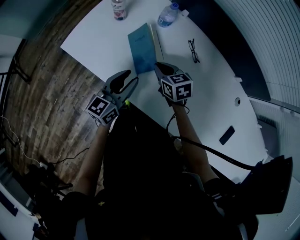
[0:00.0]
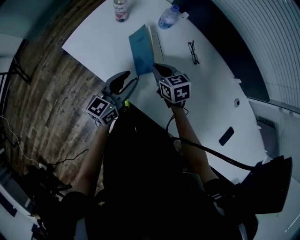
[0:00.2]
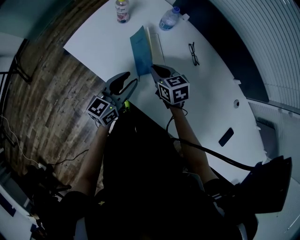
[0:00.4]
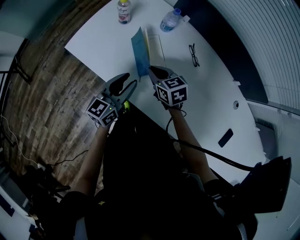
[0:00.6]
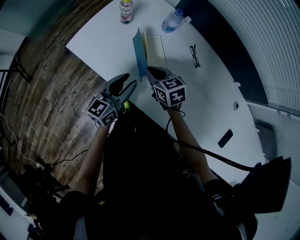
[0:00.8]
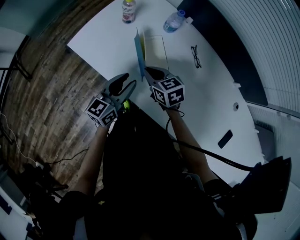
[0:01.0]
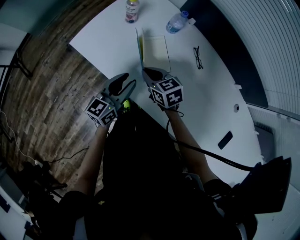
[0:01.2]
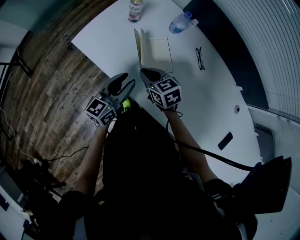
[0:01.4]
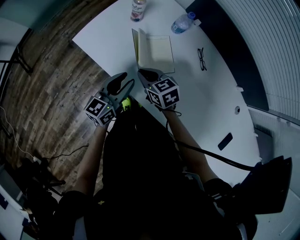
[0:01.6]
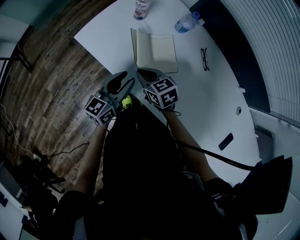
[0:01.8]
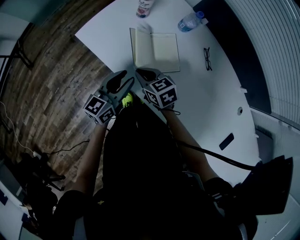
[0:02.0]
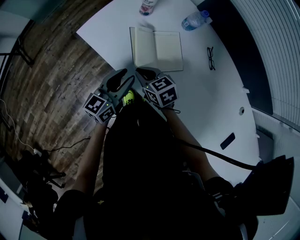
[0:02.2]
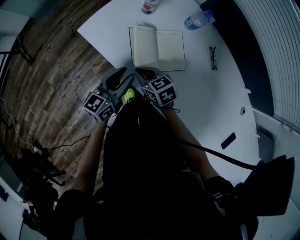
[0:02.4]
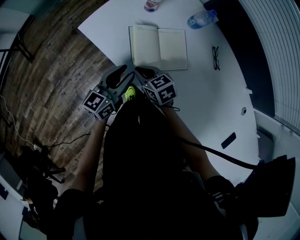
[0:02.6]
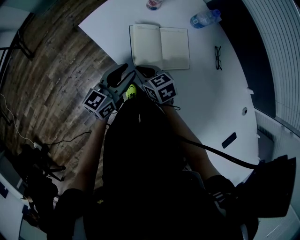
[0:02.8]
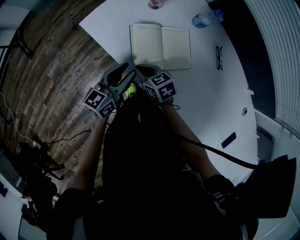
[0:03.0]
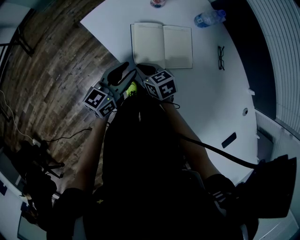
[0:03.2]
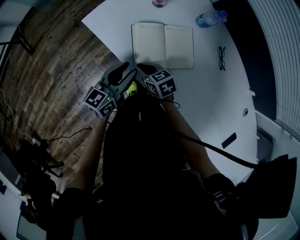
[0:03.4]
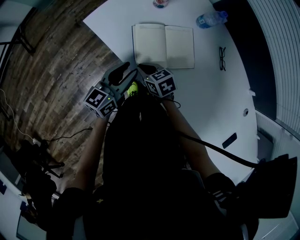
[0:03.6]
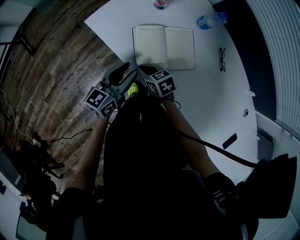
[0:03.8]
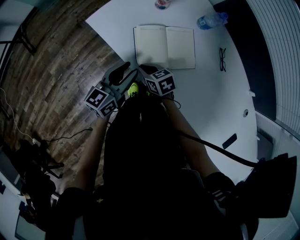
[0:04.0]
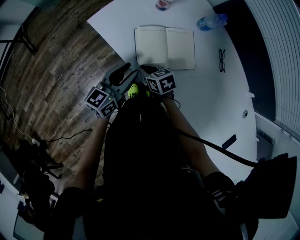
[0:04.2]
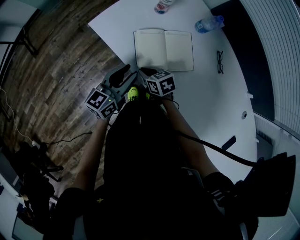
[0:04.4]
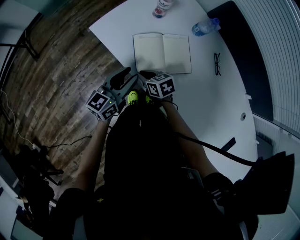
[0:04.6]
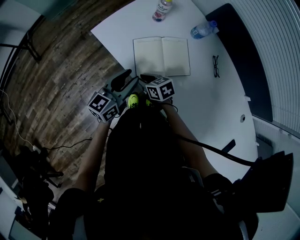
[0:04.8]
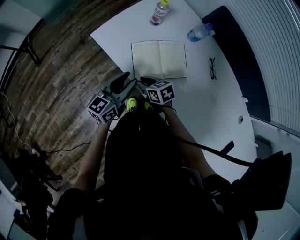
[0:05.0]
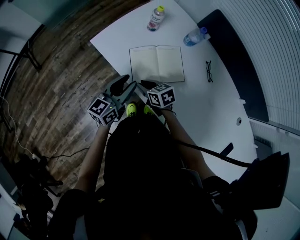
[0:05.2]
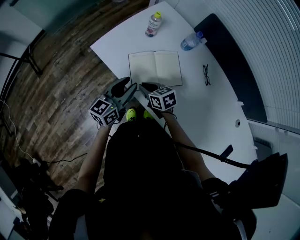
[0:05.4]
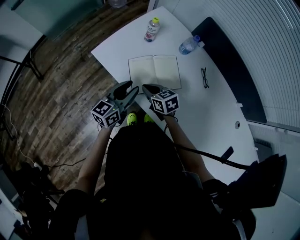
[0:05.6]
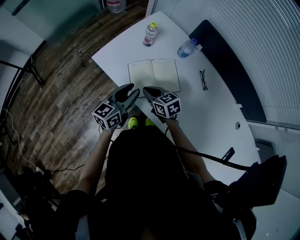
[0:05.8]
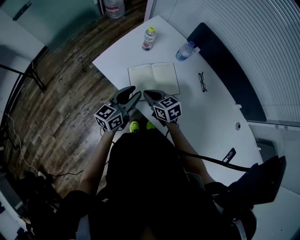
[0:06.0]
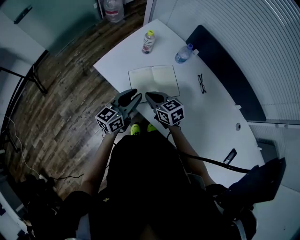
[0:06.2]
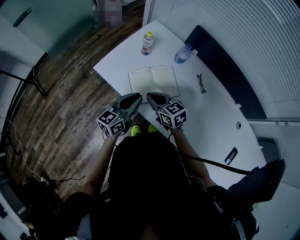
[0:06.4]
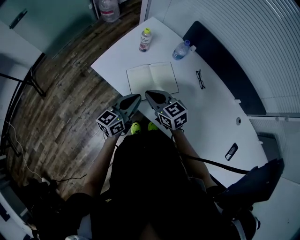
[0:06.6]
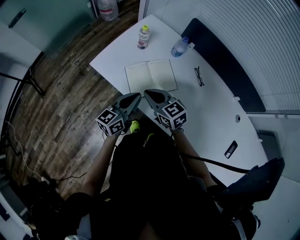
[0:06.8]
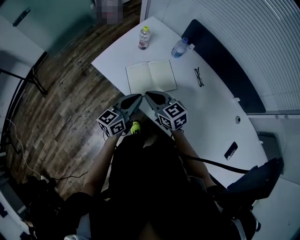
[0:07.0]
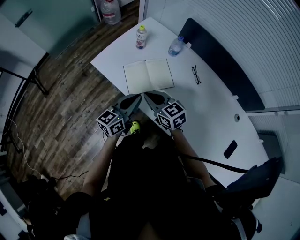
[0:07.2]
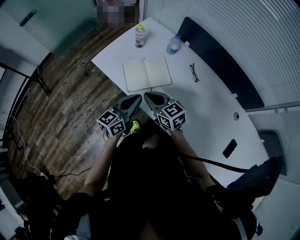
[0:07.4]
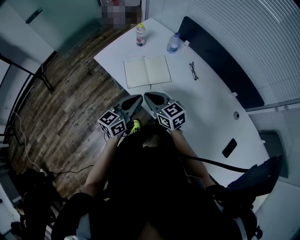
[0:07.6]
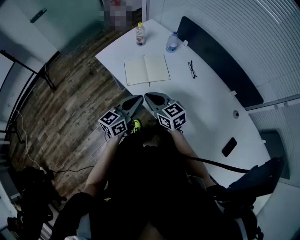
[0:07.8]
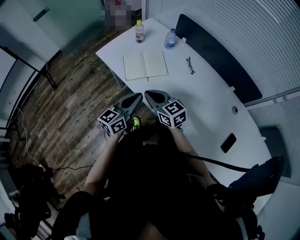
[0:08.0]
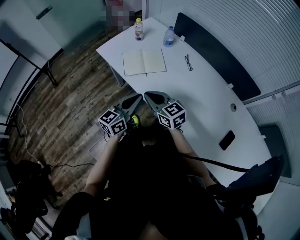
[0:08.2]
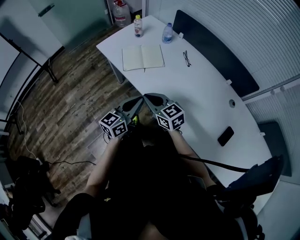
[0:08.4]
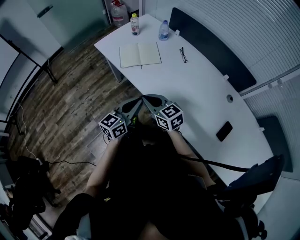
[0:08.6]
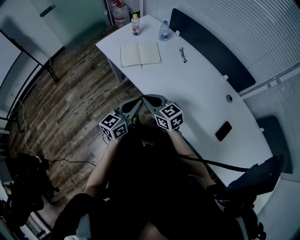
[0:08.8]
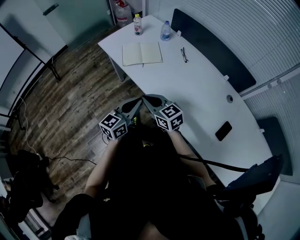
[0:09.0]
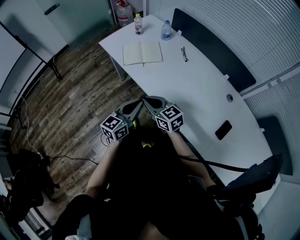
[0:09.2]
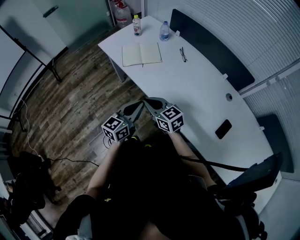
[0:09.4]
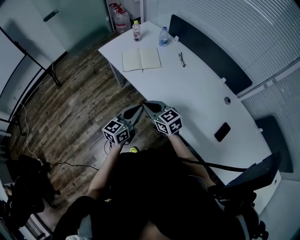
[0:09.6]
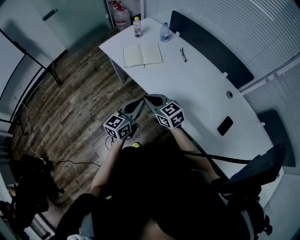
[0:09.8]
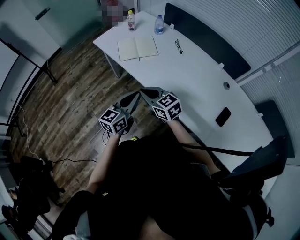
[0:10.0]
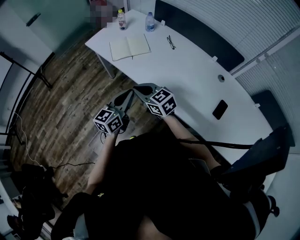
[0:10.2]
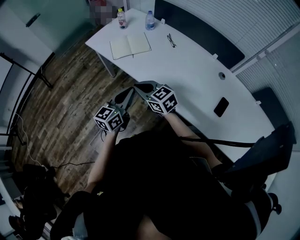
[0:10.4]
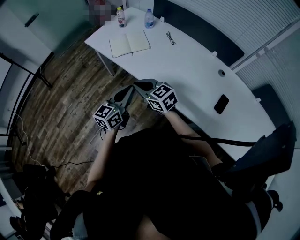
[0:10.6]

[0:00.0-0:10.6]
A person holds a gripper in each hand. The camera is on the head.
0:00.0 to 0:01.6: The right gripper shifts approximately 15 cm to the left. The left gripper goes about 5 cm to the left.
0:01.6 to 0:03.0: The left gripper shifts some 5 cm to the left, while the right gripper moves to the left and downward, about 10 cm.
0:03.0 to 0:04.6: The grippers make only small movements.
0:04.6 to 0:06.0: The left gripper goes approximately 5 cm upward. Meanwhile the right gripper travels upward by roughly 10 cm.
0:06.0 to 0:07.6: The left gripper goes roughly 15 cm backward and to the right, and closes, while the right gripper shifts roughly 15 cm backward, upward and to the right.
0:07.6 to 0:09.0: The grippers both shift backward by roughly 20 cm.
0:09.0 to 0:10.6: There are only small adjustments of the grippers.

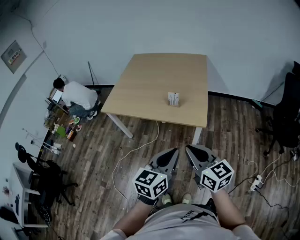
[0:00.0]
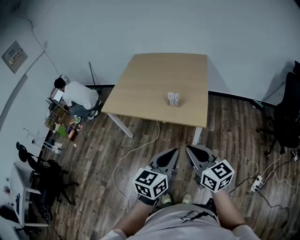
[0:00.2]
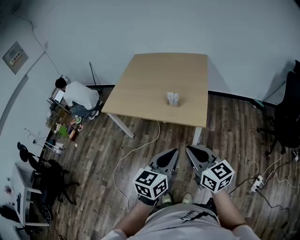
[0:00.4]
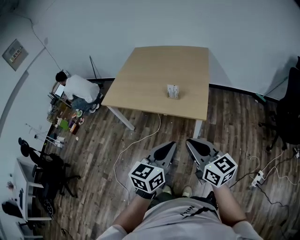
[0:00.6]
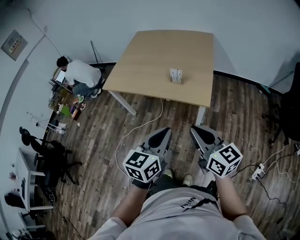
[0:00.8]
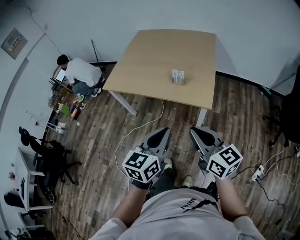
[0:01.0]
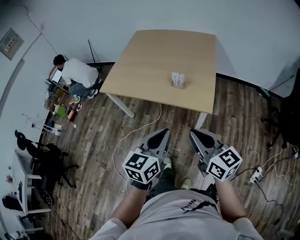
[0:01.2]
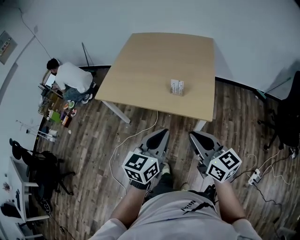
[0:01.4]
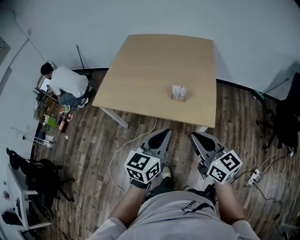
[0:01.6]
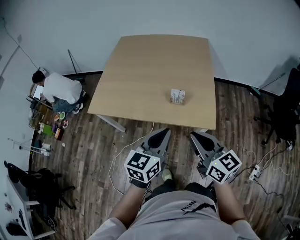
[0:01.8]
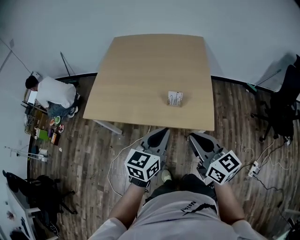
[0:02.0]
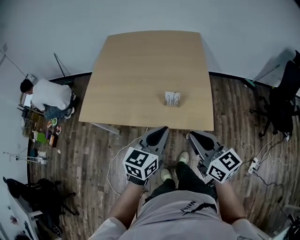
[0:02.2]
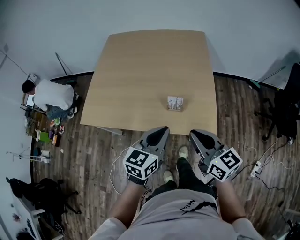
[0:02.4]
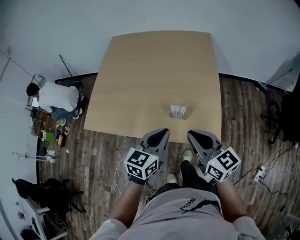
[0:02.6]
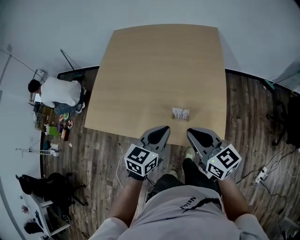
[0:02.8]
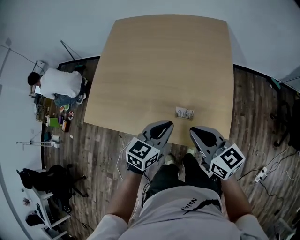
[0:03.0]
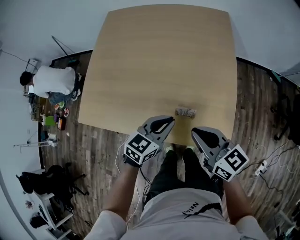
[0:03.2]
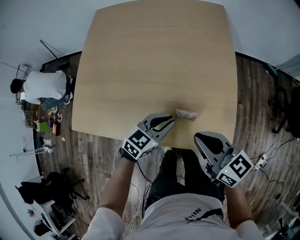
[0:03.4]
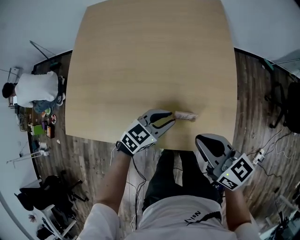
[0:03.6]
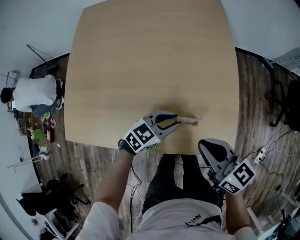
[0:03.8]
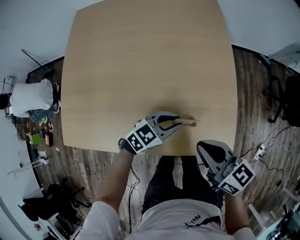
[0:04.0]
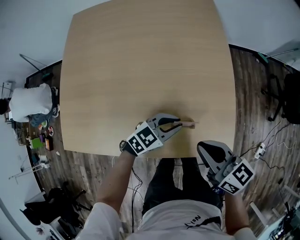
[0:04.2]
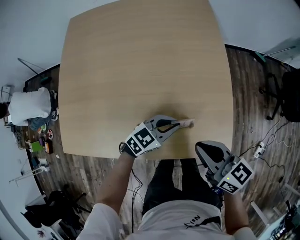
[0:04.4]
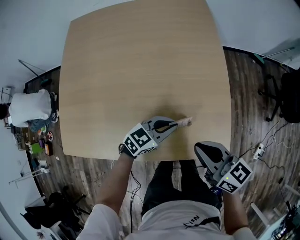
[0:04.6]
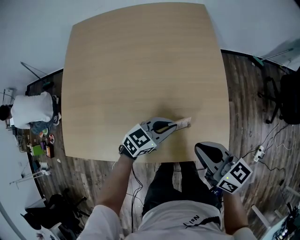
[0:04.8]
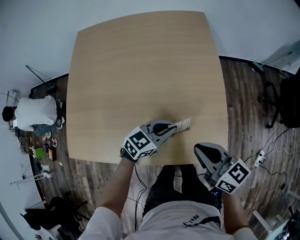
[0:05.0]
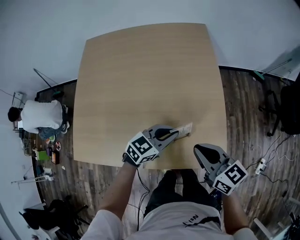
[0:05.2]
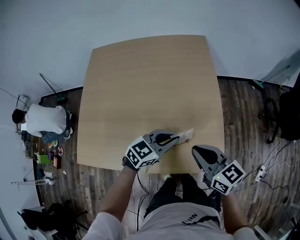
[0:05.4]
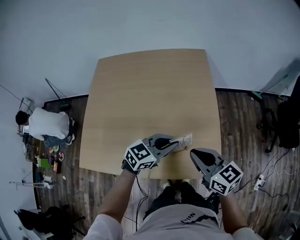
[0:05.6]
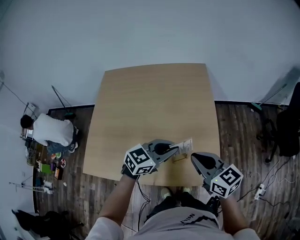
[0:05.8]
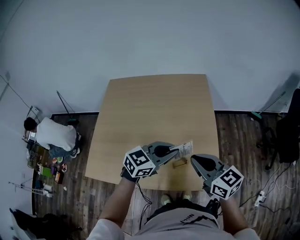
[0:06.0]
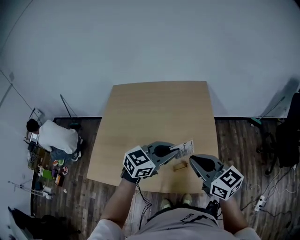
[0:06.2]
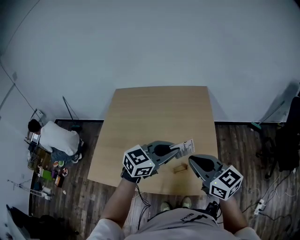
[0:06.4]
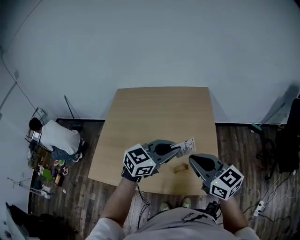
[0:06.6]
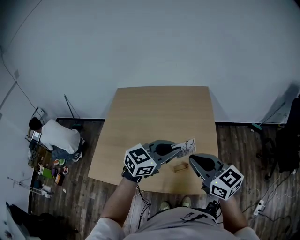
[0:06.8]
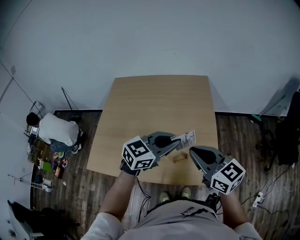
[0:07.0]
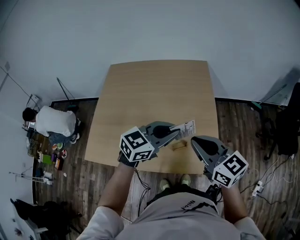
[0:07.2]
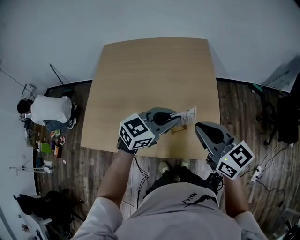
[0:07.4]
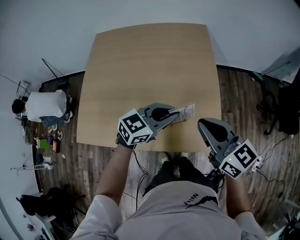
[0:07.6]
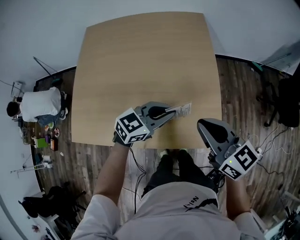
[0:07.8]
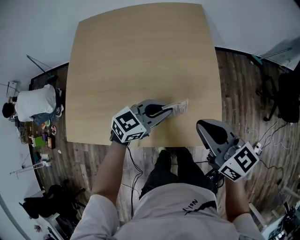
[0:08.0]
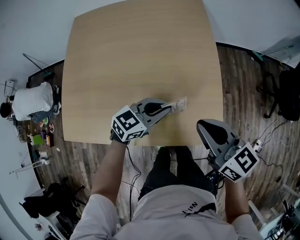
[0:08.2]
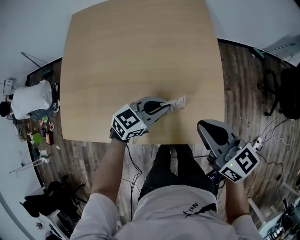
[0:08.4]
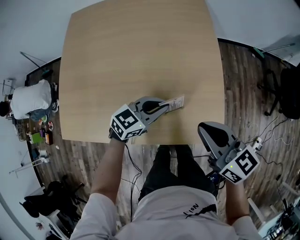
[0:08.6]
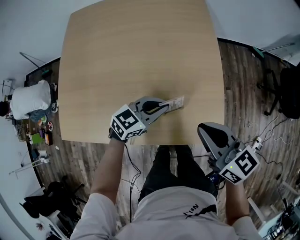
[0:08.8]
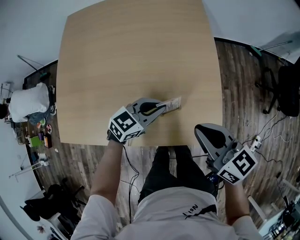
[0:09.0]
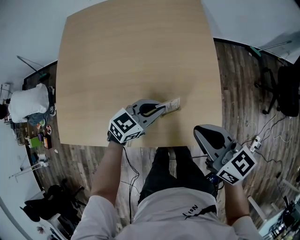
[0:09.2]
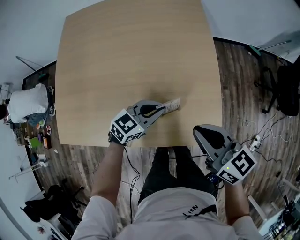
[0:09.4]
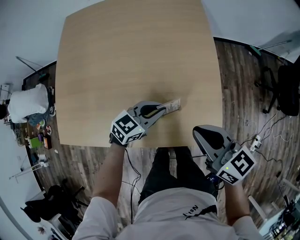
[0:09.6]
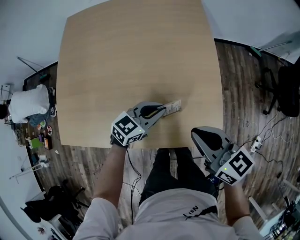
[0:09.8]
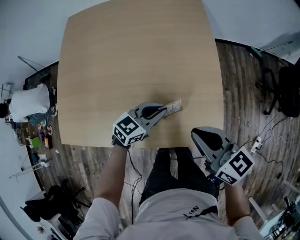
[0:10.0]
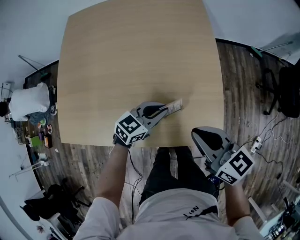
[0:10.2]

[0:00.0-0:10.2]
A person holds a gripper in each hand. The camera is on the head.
0:00.0 to 0:01.4: Both grippers travel together forward, roughly 10 cm.
0:01.4 to 0:03.0: The right gripper travels forward by approximately 35 cm; the left gripper travels forward and downward by roughly 35 cm, and changes its angle by approximately 20 degrees.
0:03.0 to 0:04.4: The left gripper is displaced downward and forward by approximately 15 cm, and turns by approximately 40 degrees. Meanwhile the right gripper goes about 10 cm downward.
0:04.4 to 0:05.8: The left gripper heads upward, covering some 25 cm. Meanwhile the right gripper shifts about 15 cm upward.
0:05.8 to 0:07.2: The two grippers go roughly 10 cm upward.
0:07.2 to 0:08.8: The left gripper heads downward, covering approximately 25 cm. Meanwhile the right gripper travels downward by roughly 15 cm.
0:08.8 to 0:10.2: The grippers move only a little.

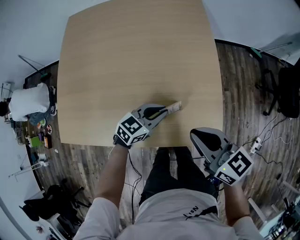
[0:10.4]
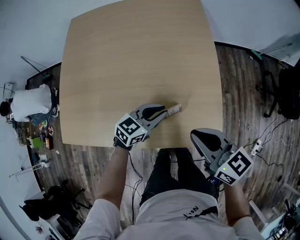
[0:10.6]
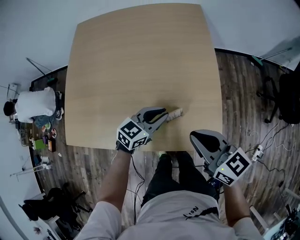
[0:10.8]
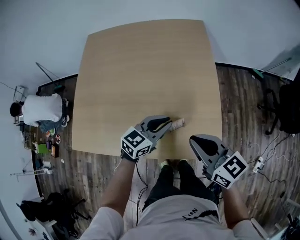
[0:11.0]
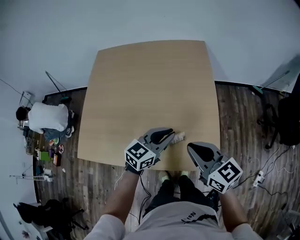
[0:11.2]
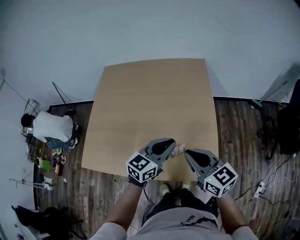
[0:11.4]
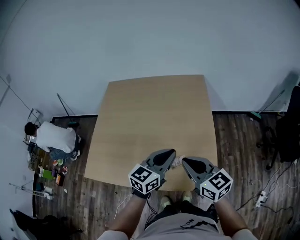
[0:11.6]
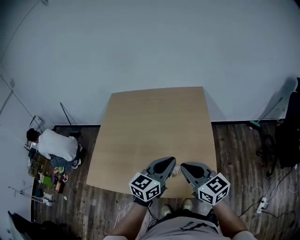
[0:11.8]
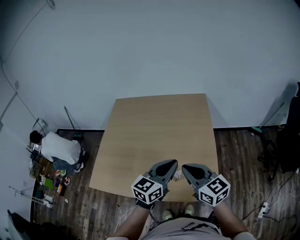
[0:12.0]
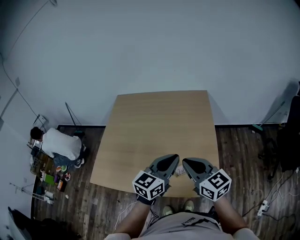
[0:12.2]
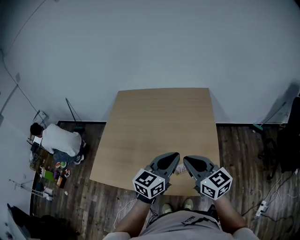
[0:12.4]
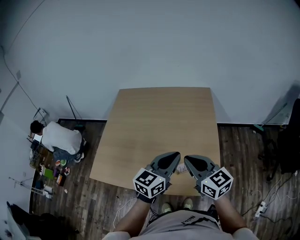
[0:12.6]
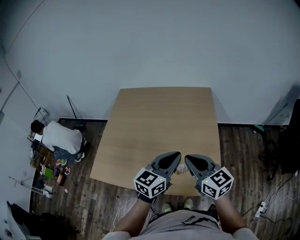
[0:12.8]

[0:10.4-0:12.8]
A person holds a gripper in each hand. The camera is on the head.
0:10.4 to 0:11.6: The left gripper is displaced upward by some 25 cm, and rotates roughly 30 degrees, while the right gripper heads upward, covering approximately 10 cm.
0:11.6 to 0:12.8: The right gripper moves approximately 5 cm. The left gripper goes roughly 5 cm upward.
